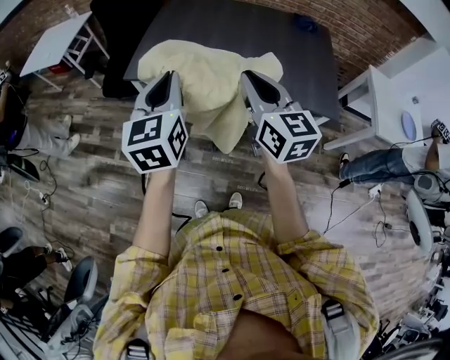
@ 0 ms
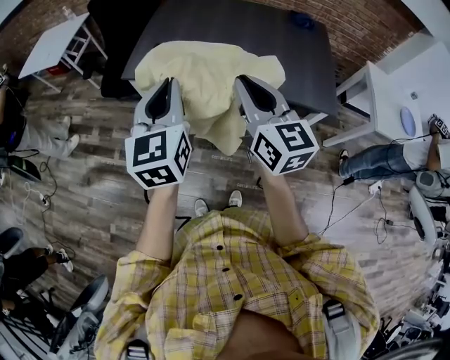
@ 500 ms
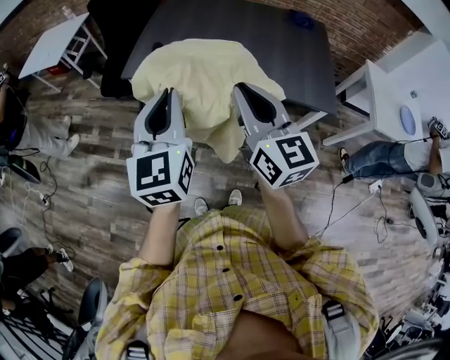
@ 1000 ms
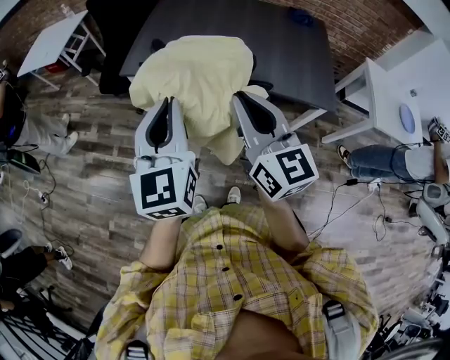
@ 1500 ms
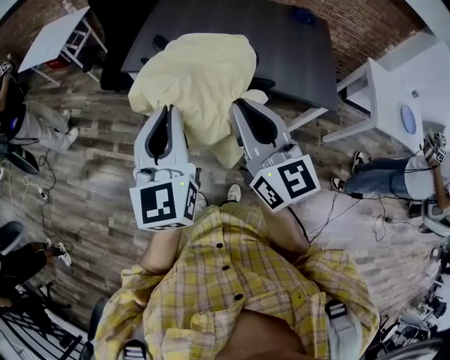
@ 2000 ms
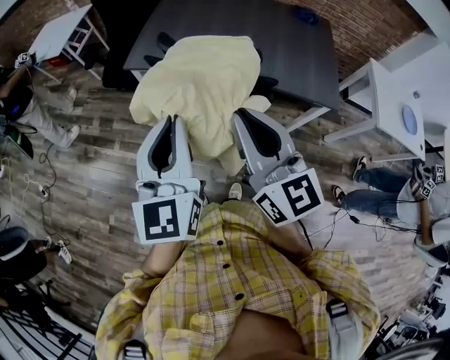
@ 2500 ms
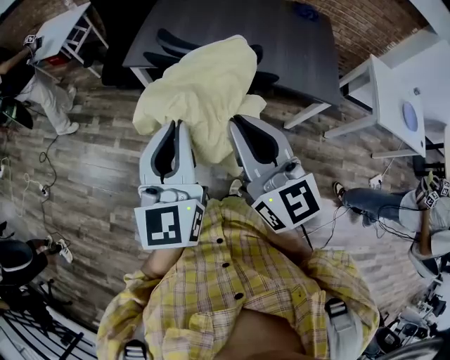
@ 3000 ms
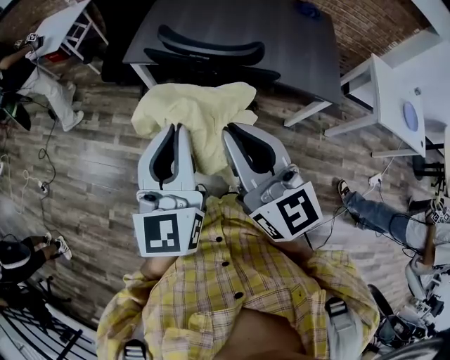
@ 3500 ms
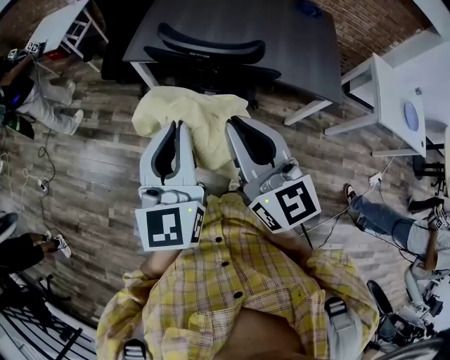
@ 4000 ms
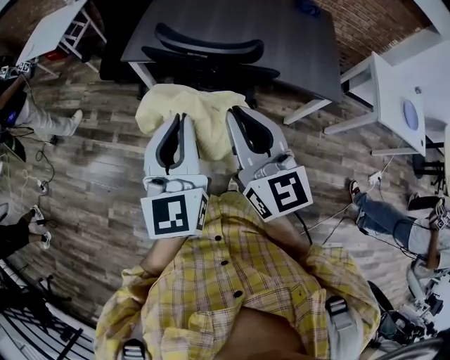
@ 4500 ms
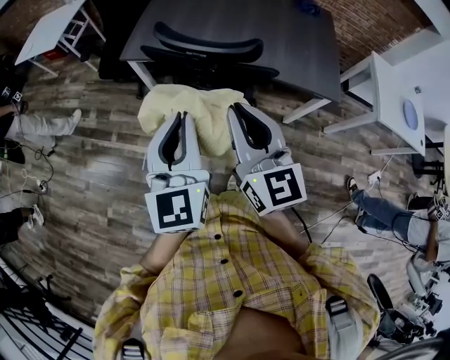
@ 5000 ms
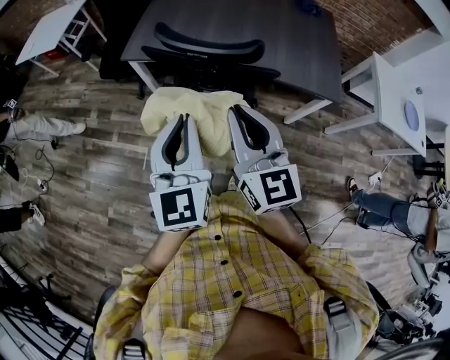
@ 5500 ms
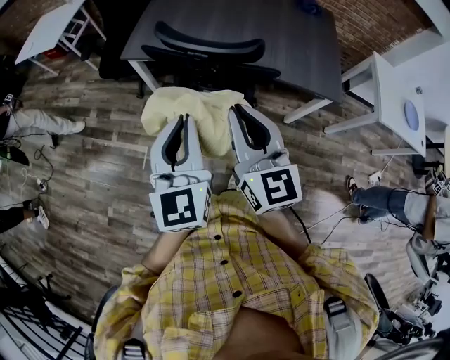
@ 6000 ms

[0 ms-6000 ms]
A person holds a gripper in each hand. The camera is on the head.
0 ms to 2000 ms: The two grippers go roughly 10 cm backward.
4000 ms to 6000 ms: The right gripper moves roughly 5 cm.

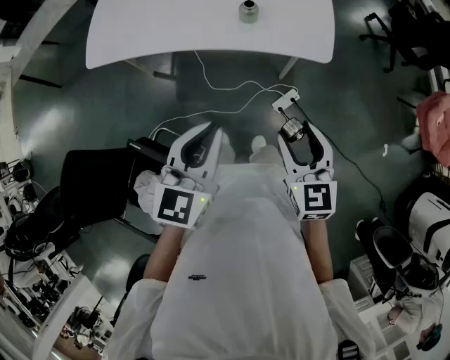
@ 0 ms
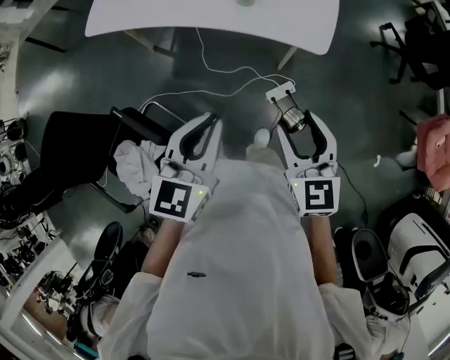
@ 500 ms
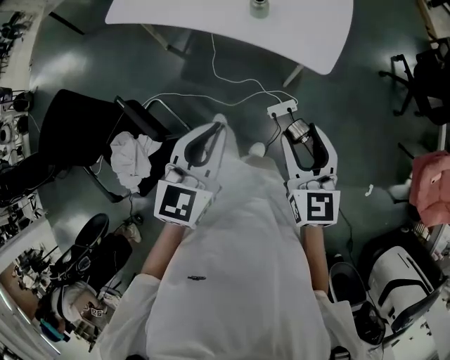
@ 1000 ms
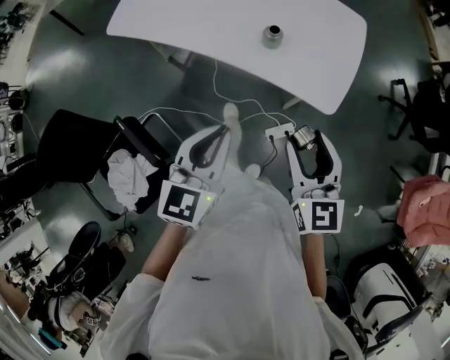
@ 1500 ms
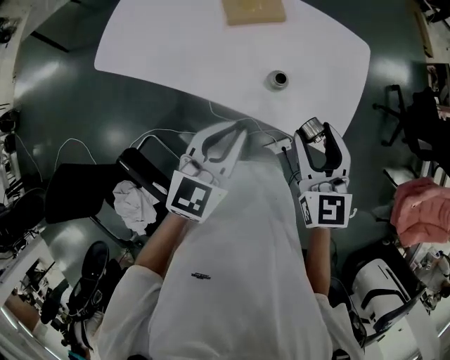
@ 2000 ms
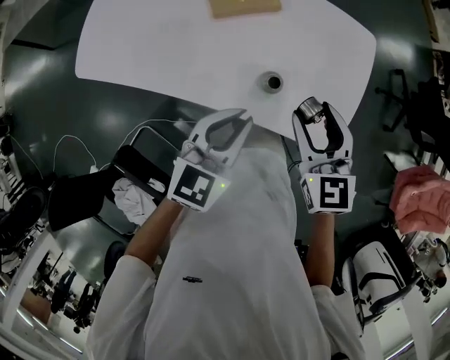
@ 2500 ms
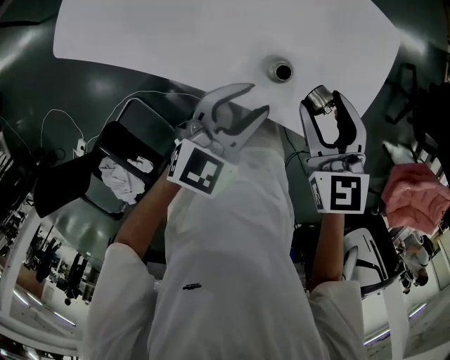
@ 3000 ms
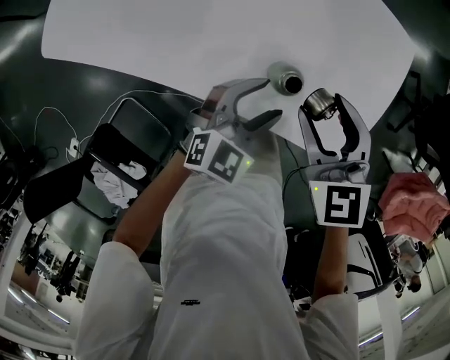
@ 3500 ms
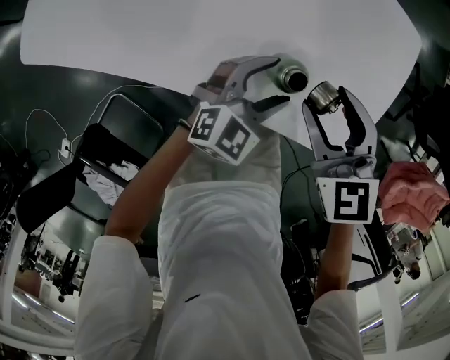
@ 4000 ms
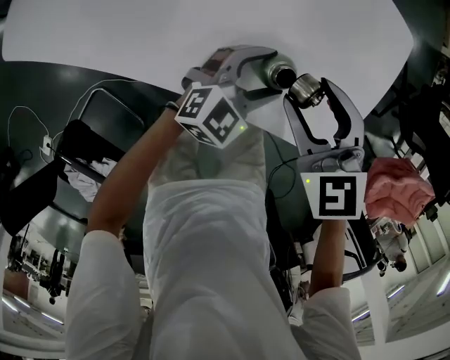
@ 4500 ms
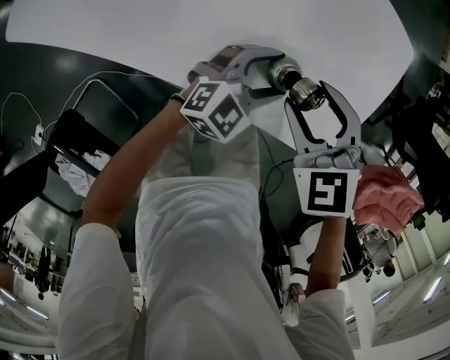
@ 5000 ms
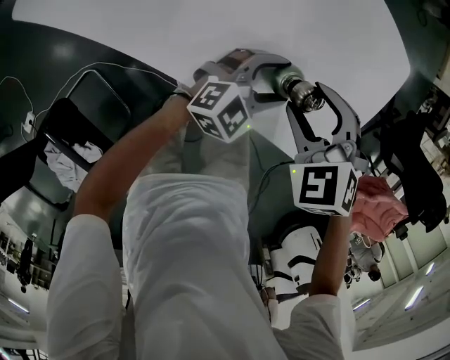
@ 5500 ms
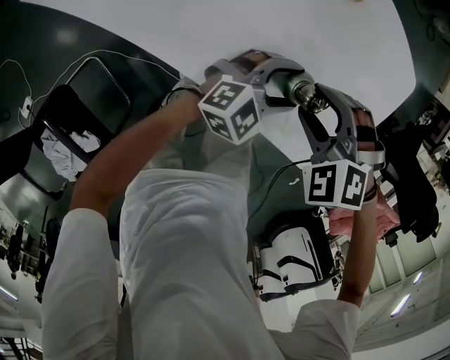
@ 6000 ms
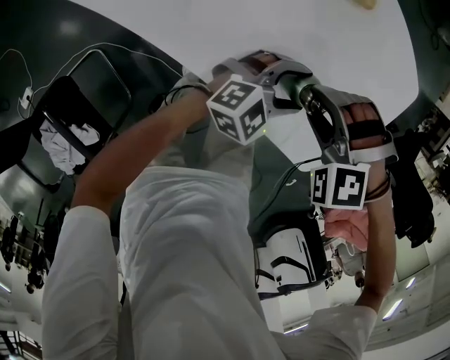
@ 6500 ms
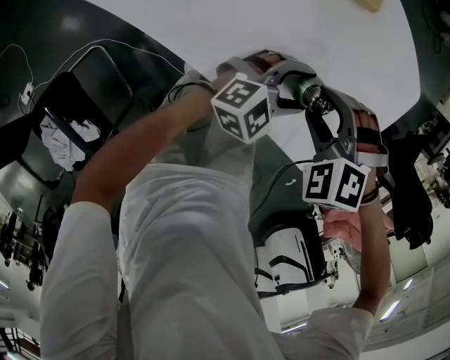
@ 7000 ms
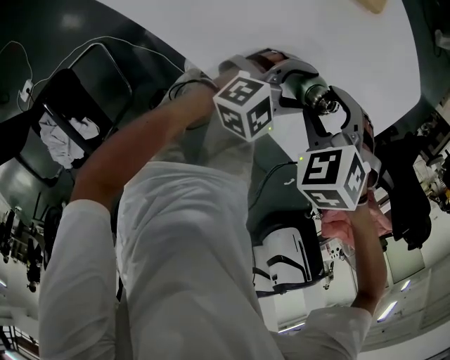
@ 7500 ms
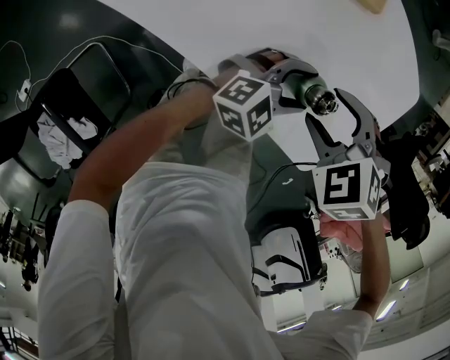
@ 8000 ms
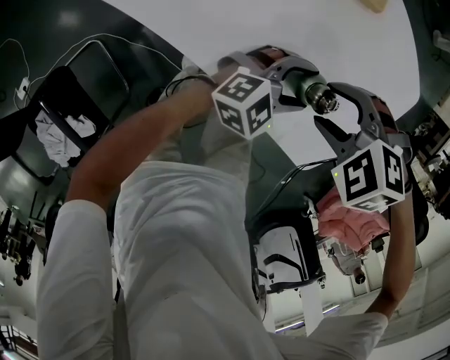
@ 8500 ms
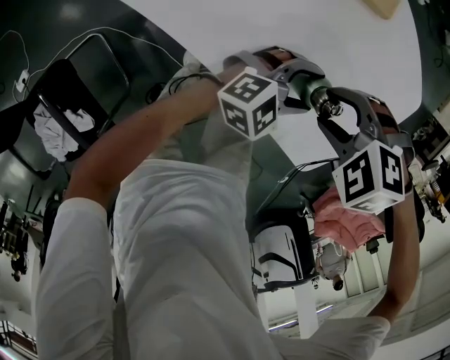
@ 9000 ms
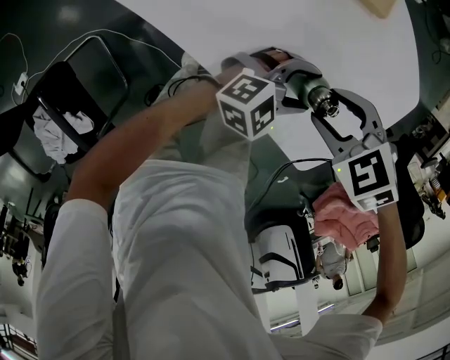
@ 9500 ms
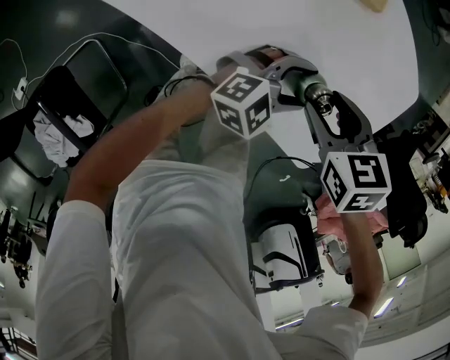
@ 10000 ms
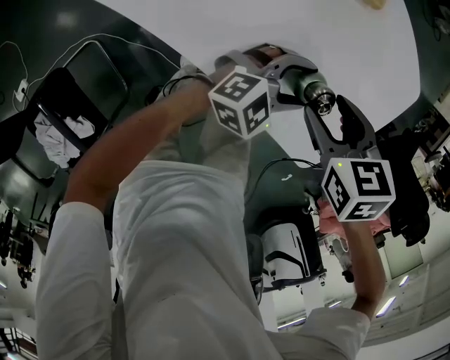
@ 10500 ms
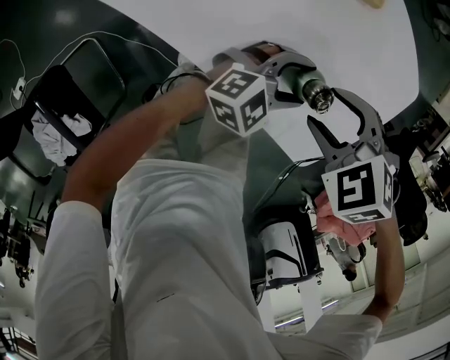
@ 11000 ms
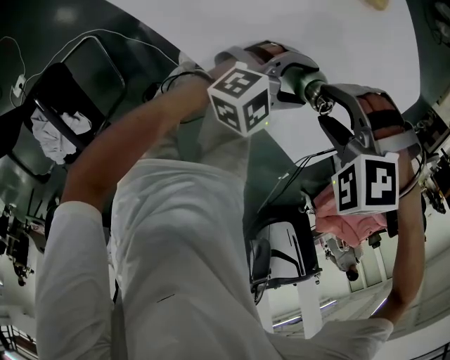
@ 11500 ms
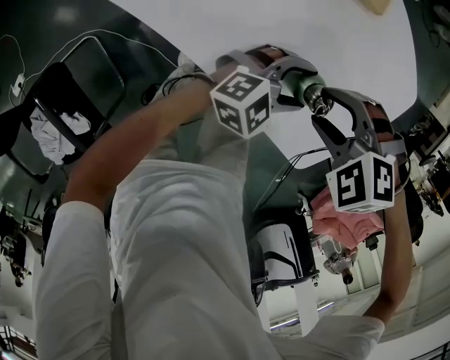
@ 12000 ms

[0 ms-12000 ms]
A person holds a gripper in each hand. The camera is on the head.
0 ms to 2000 ms: The two grippers go about 30 cm forward.
2000 ms to 4000 ms: The grippers both shift downward and forward by about 30 cm. The right gripper rotates about 30 degrees, while the left gripper swivels about 30 degrees, and opens.
4000 ms to 6000 ms: The right gripper heads downward, covering roughly 5 cm, and twists approximately 50 degrees counterclockwise, seen from behind.
8000 ms to 10000 ms: The right gripper rolls clockwise, seen from behind, by roughly 40 degrees.
10000 ms to 12000 ms: The right gripper rotates around the line of its fingers by some 60 degrees, counterclockwise from behind.

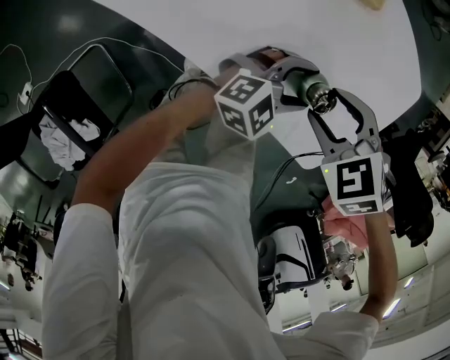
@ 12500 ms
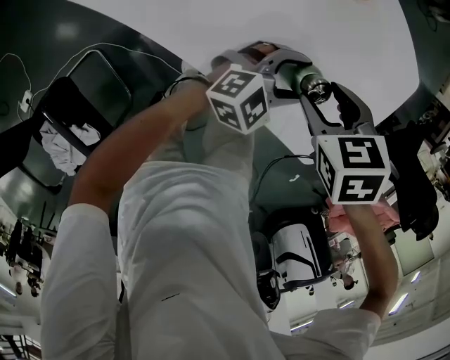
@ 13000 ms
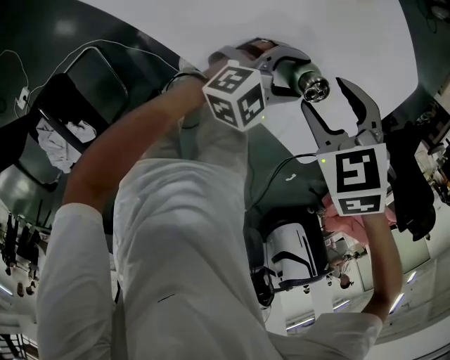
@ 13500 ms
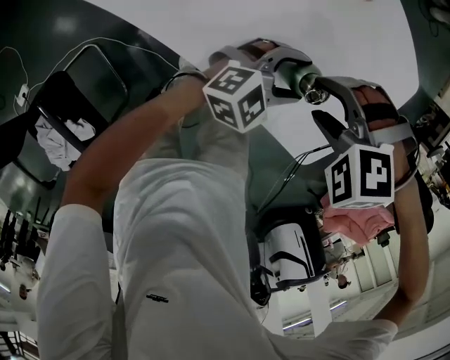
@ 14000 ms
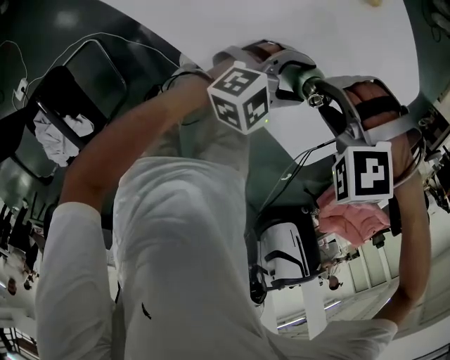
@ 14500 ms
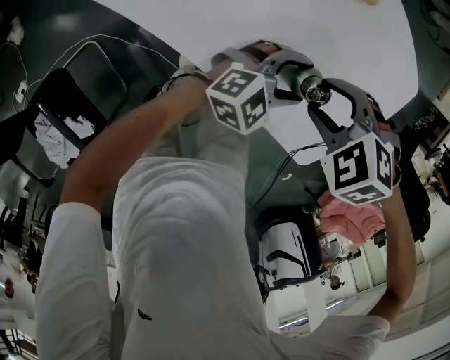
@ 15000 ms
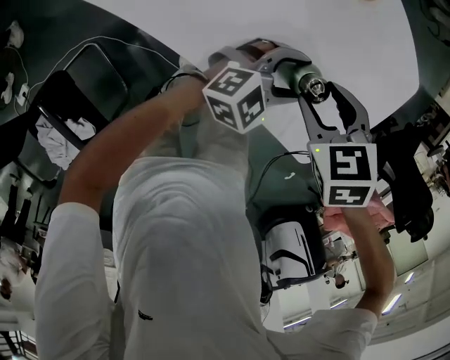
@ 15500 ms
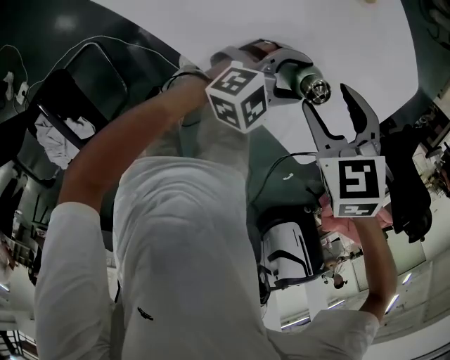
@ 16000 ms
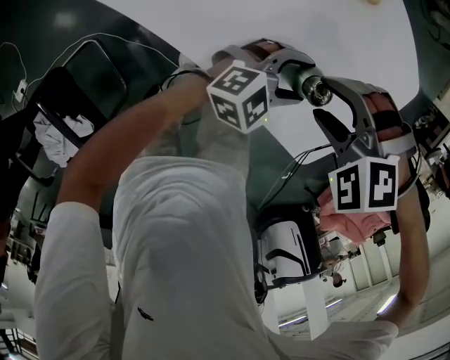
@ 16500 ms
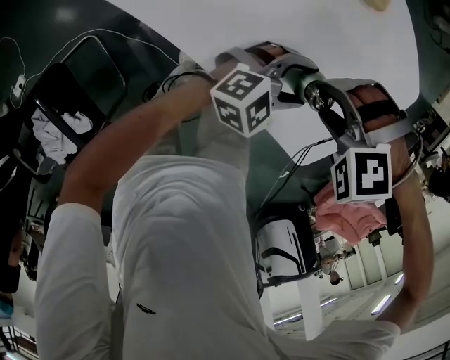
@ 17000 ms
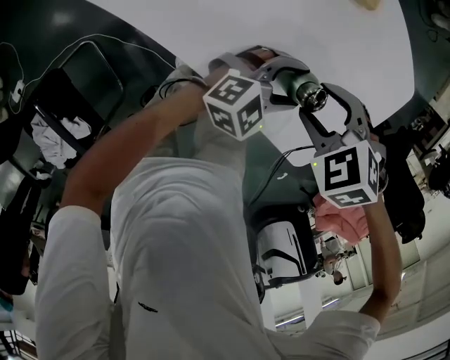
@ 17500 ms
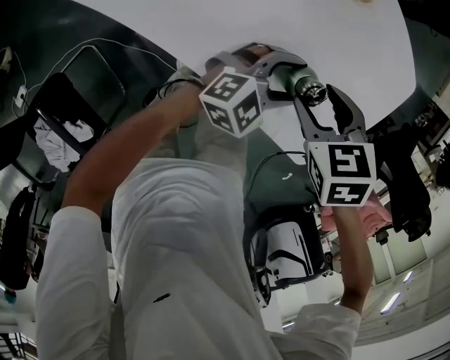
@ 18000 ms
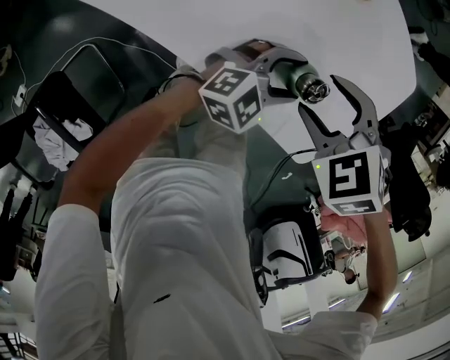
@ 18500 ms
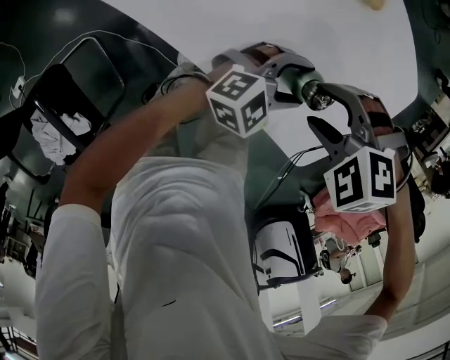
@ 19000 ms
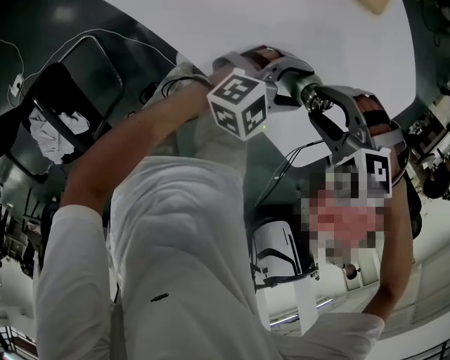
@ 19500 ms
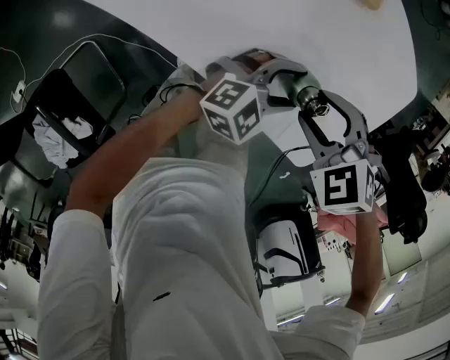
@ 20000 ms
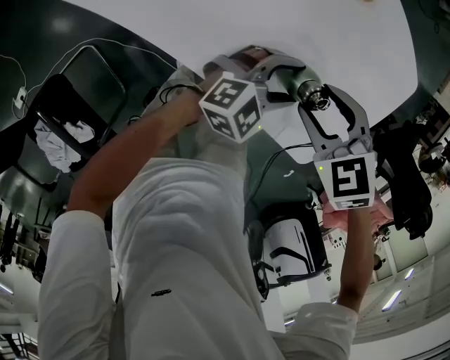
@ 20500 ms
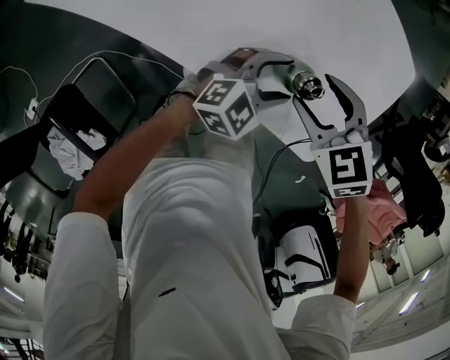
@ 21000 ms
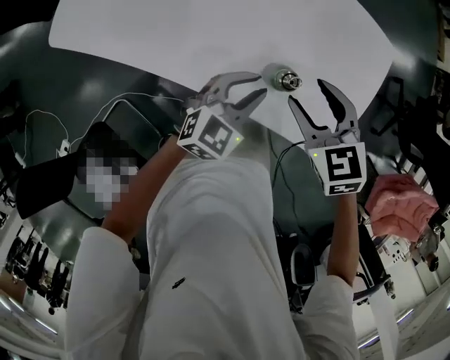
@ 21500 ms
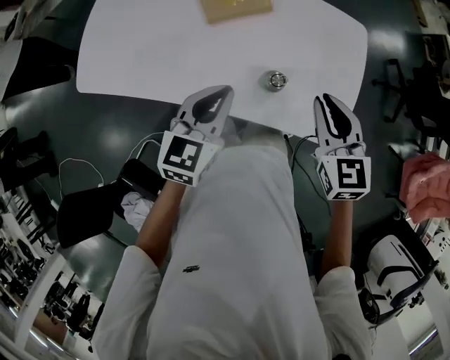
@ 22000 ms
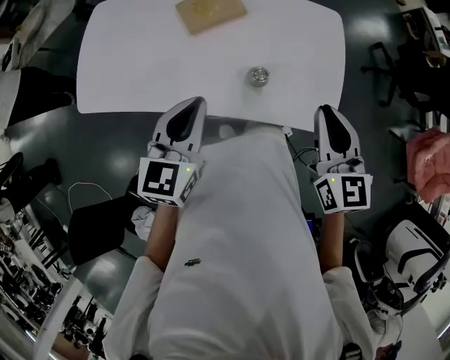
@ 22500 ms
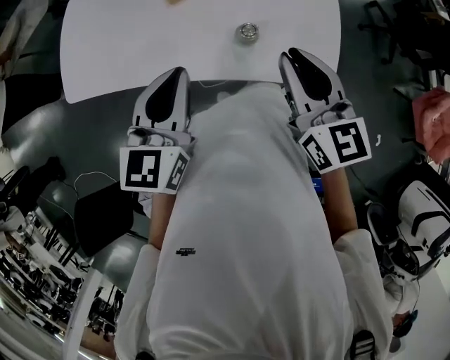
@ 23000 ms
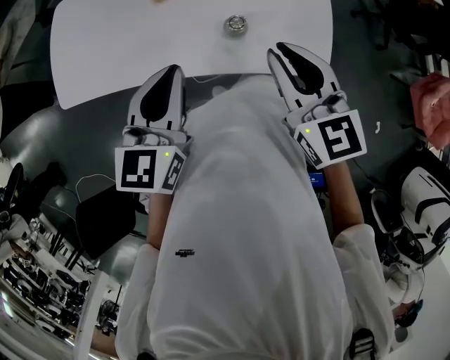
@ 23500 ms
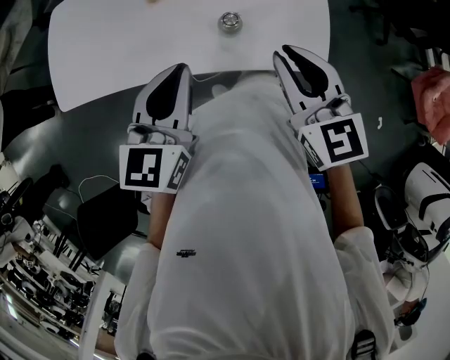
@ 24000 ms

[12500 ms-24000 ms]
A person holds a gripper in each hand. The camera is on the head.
12500 ms to 14500 ms: The right gripper rotates around the line of its fingers by about 60 degrees, counterclockwise from behind.
16500 ms to 18500 ms: The right gripper rolls clockwise, seen from behind, by about 40 degrees.
20000 ms to 22000 ms: The grippers both shift upward by roughly 25 cm. The left gripper rotates some 30 degrees, and closes; the right gripper points its fingers roughly 40 degrees further upward, and closes up.
22000 ms to 24000 ms: The left gripper shifts roughly 10 cm upward and backward, while the right gripper goes roughly 10 cm backward.
